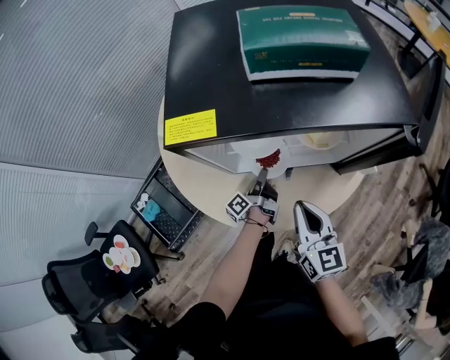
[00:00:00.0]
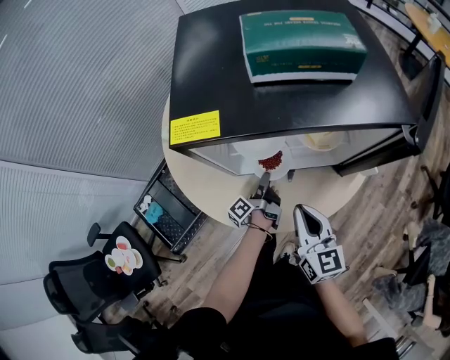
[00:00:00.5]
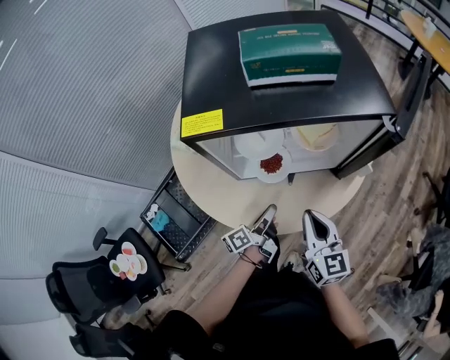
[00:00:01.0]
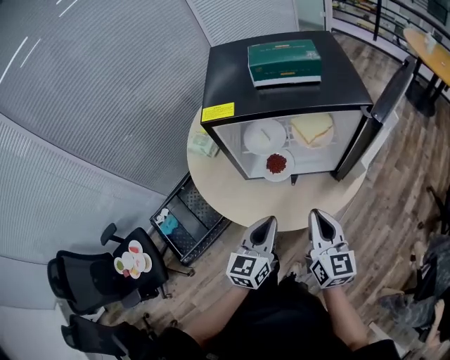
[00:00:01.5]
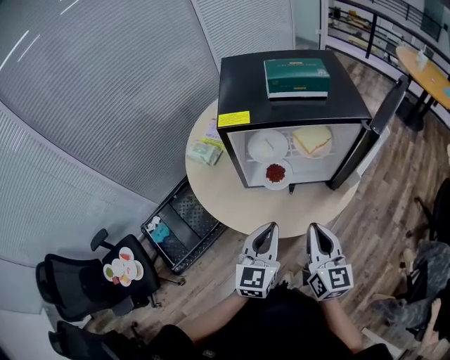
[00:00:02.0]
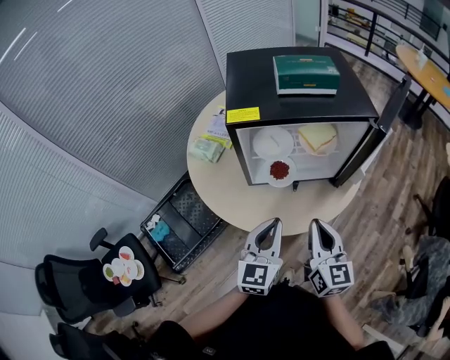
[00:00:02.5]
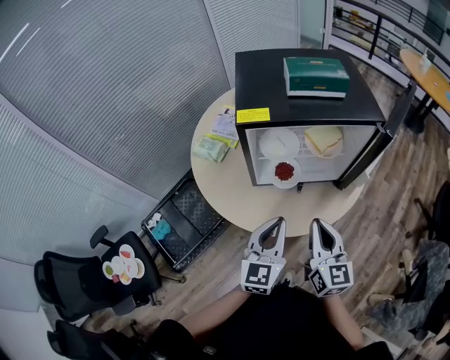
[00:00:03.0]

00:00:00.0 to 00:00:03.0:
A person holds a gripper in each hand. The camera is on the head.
00:00:00.0 to 00:00:01.5: The left gripper is displaced upward and backward by about 35 cm, and rotates around the line of its fingers by some 80 degrees, clockwise from behind. Meanwhile the right gripper is displaced backward and upward by about 10 cm.
00:00:01.5 to 00:00:03.0: The right gripper shifts some 5 cm to the left; the left gripper travels upward by roughly 5 cm.

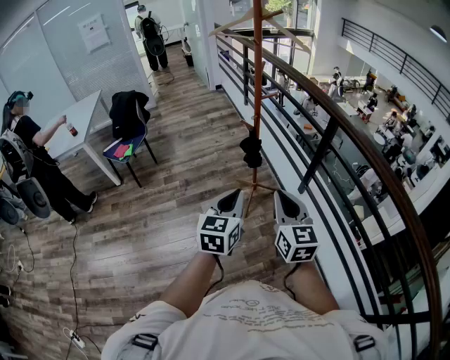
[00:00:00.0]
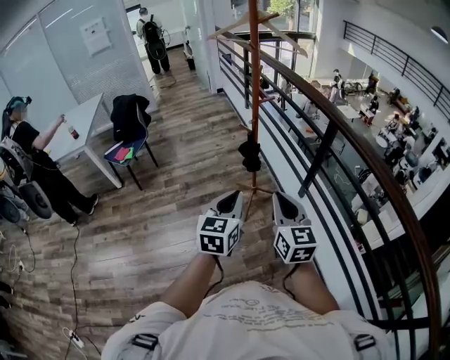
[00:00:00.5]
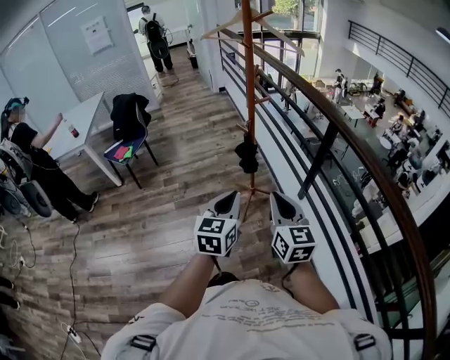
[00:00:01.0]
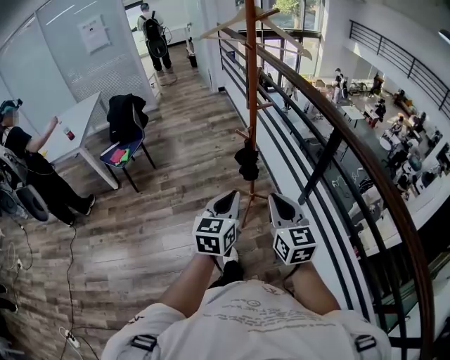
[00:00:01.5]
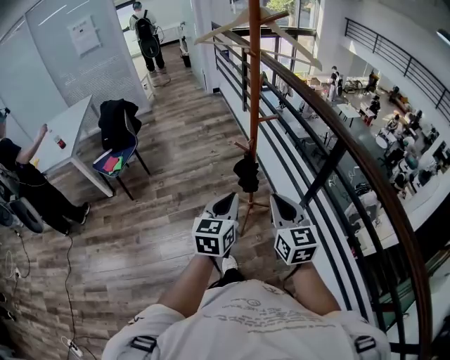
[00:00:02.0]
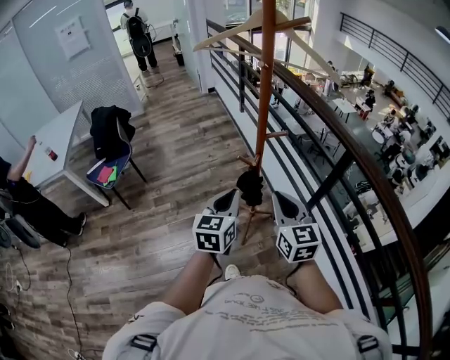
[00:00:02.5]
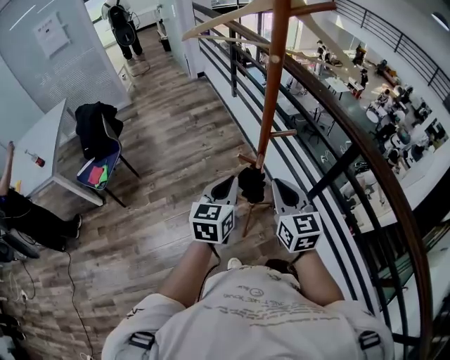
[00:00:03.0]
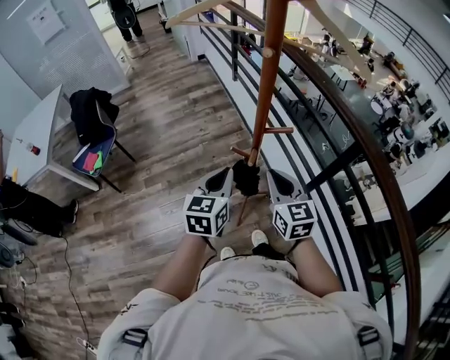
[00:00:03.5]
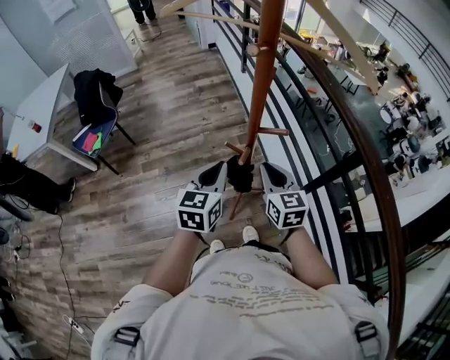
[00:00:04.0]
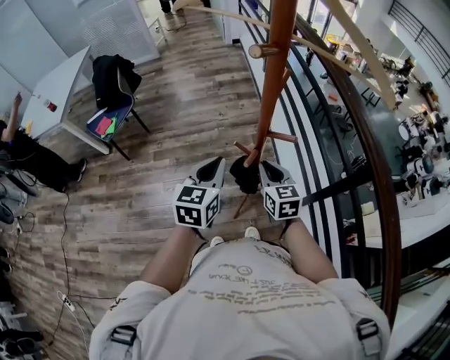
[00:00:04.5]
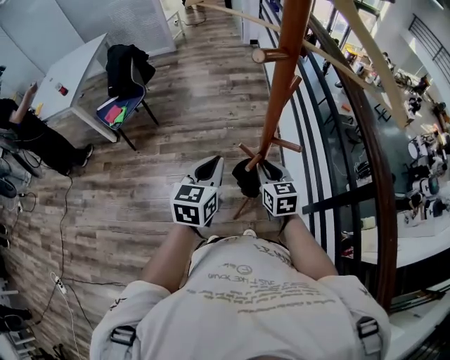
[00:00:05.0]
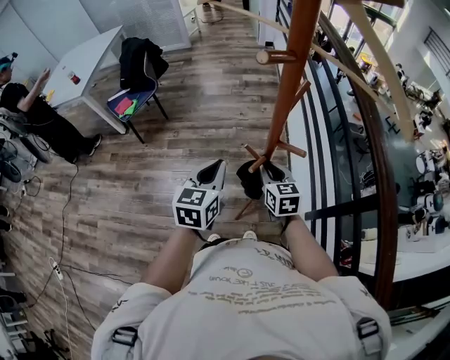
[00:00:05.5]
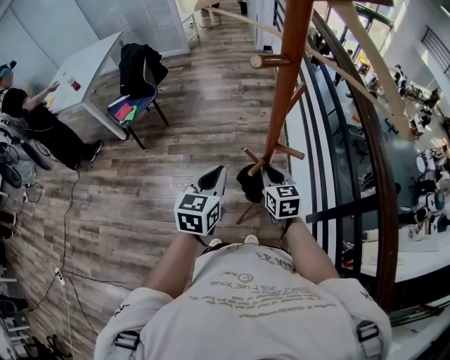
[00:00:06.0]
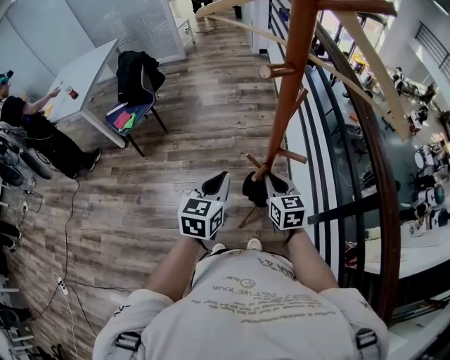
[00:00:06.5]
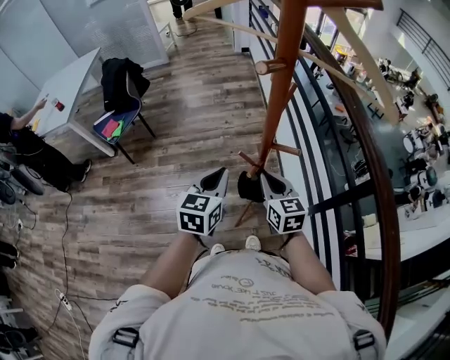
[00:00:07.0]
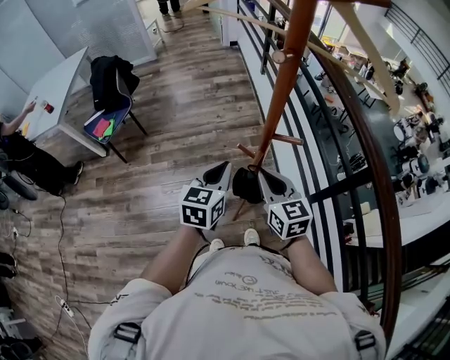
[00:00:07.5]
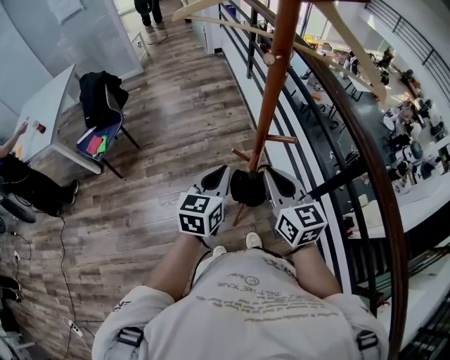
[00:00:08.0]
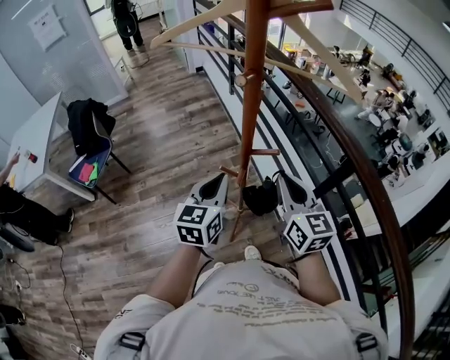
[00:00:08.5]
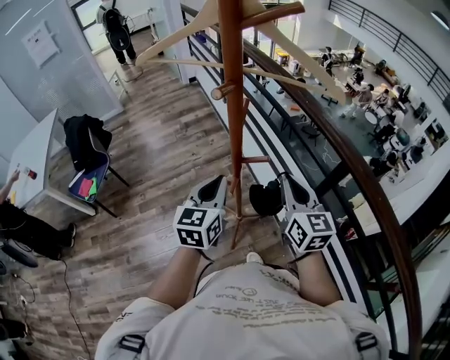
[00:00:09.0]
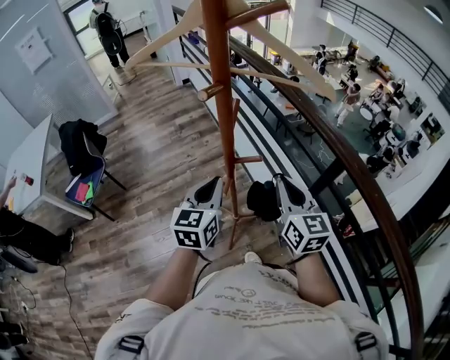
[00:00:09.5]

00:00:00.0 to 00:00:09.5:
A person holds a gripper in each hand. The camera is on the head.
00:00:00.0 to 00:00:02.0: Both grippers travel together forward, roughly 20 cm.
00:00:02.0 to 00:00:04.0: Both grippers move forward, roughly 25 cm.
00:00:04.0 to 00:00:05.5: The right gripper moves downward and forward, about 10 cm.
00:00:05.5 to 00:00:07.5: The right gripper travels upward and backward by approximately 10 cm.
00:00:07.5 to 00:00:09.5: The left gripper goes some 10 cm to the right and upward. The right gripper goes some 15 cm to the right and upward, and swivels roughly 30 degrees.

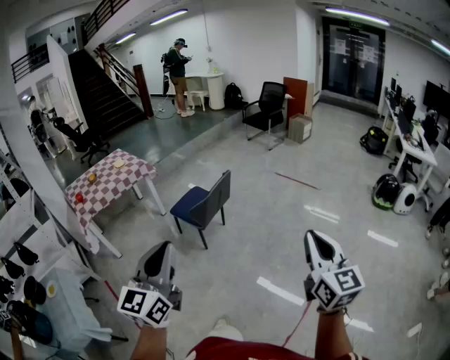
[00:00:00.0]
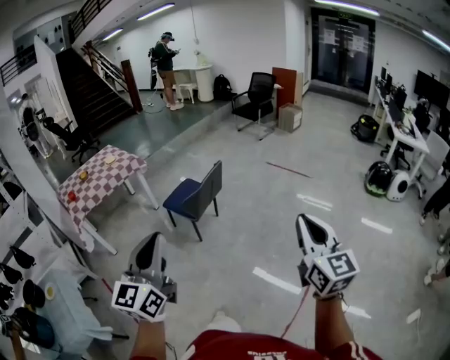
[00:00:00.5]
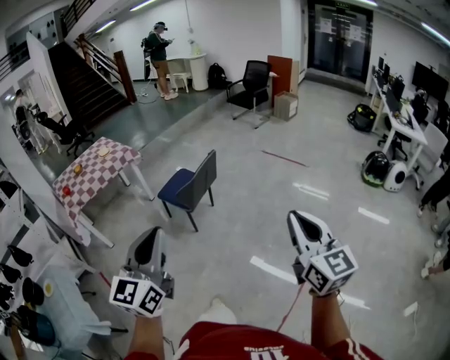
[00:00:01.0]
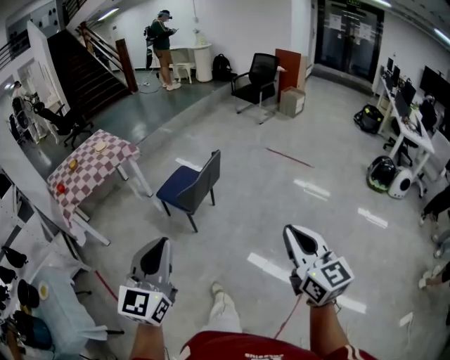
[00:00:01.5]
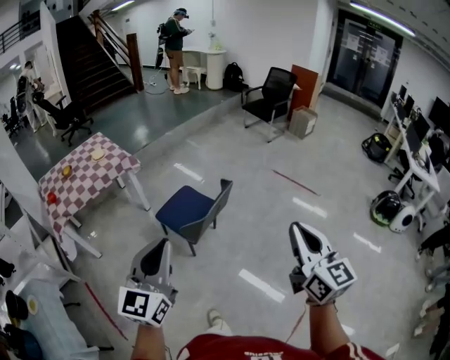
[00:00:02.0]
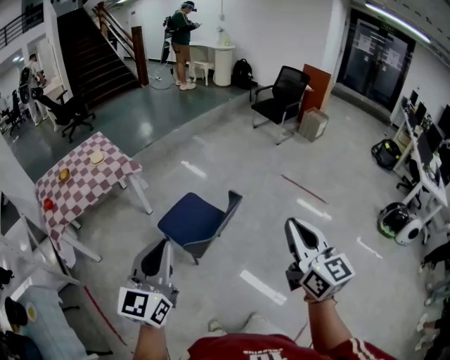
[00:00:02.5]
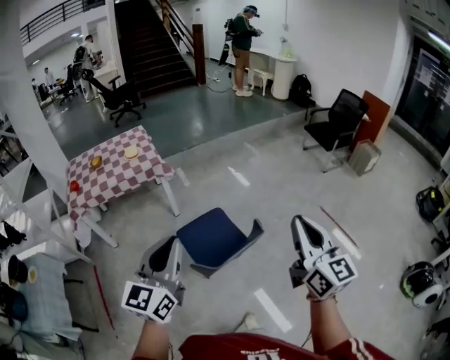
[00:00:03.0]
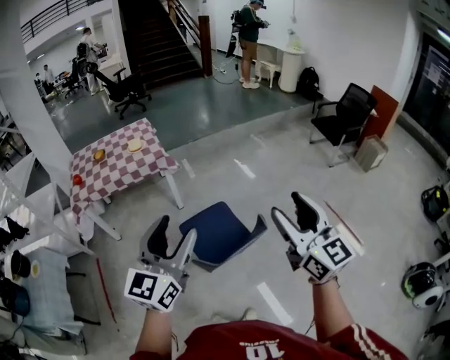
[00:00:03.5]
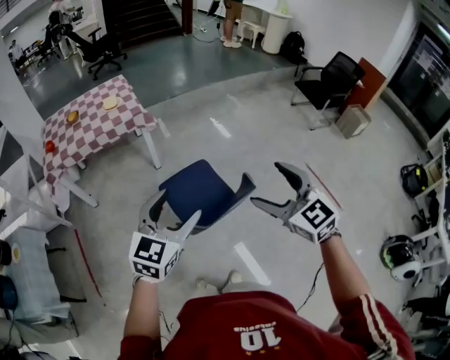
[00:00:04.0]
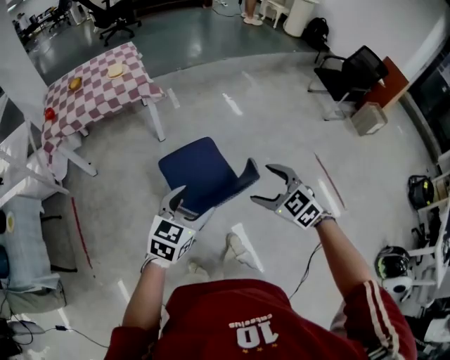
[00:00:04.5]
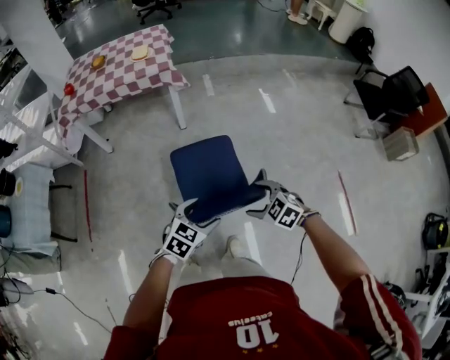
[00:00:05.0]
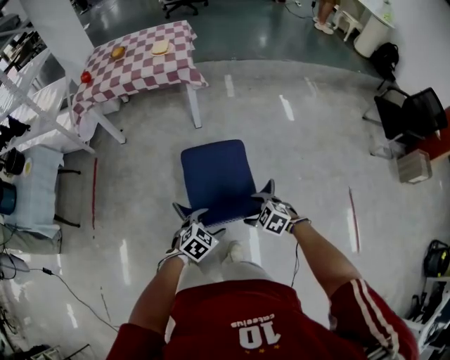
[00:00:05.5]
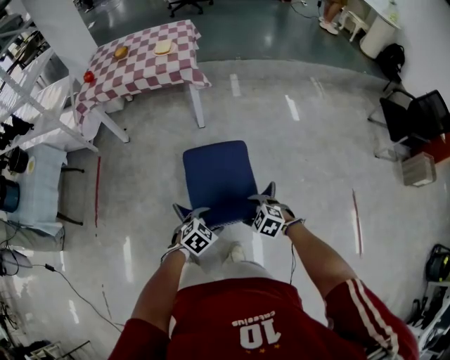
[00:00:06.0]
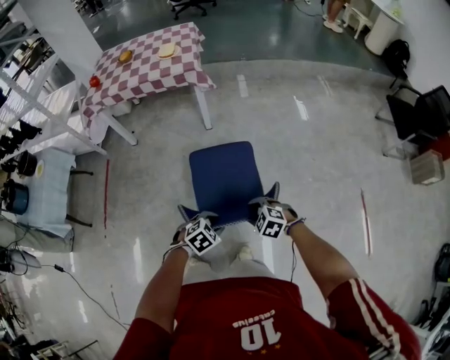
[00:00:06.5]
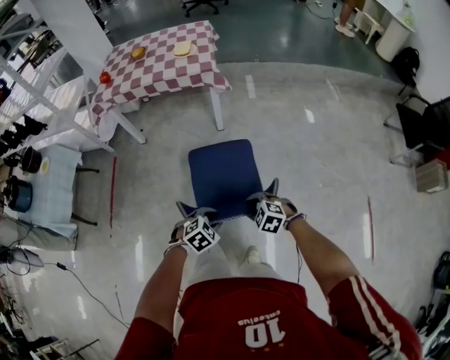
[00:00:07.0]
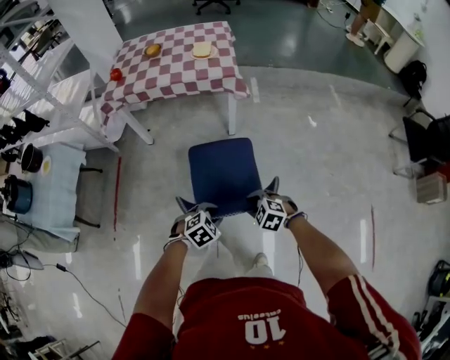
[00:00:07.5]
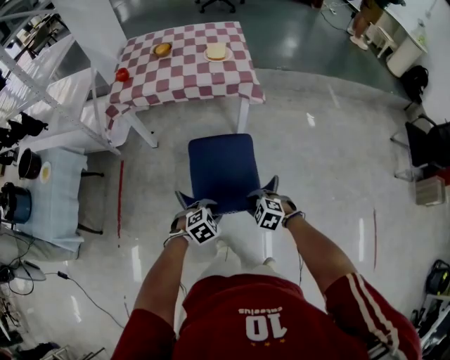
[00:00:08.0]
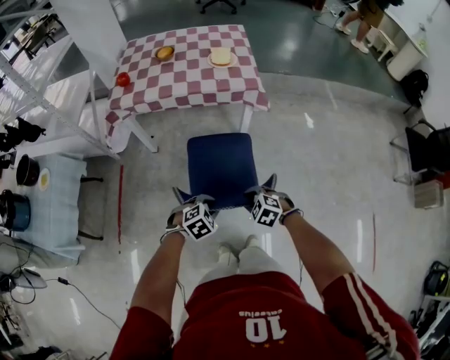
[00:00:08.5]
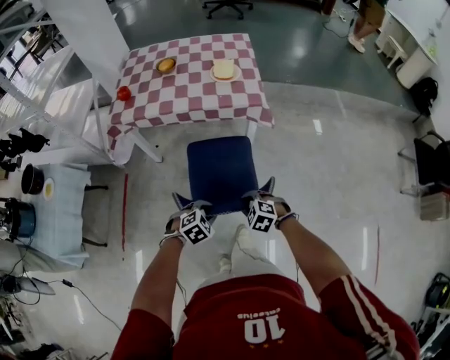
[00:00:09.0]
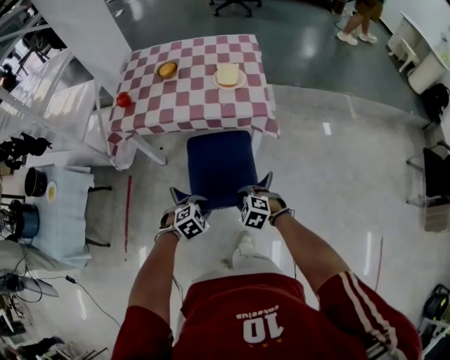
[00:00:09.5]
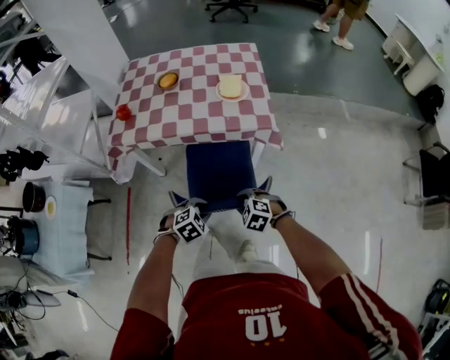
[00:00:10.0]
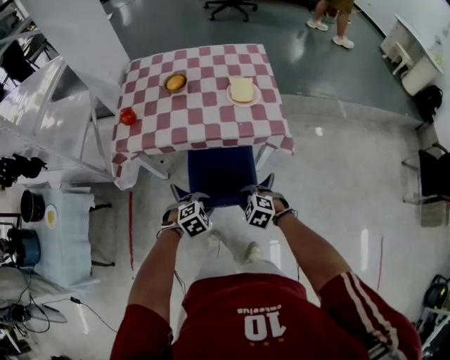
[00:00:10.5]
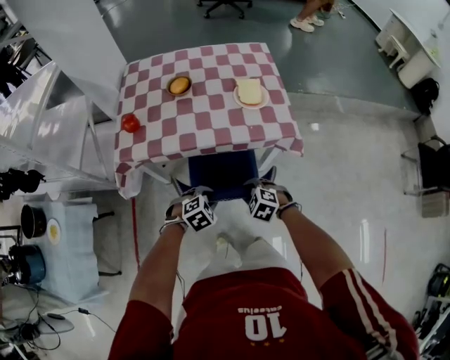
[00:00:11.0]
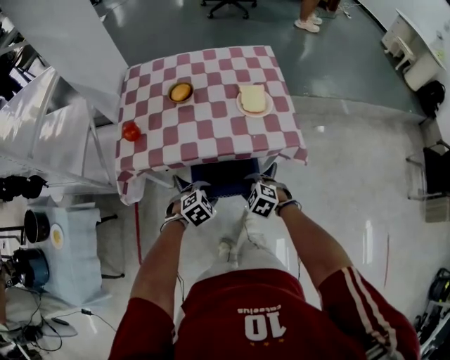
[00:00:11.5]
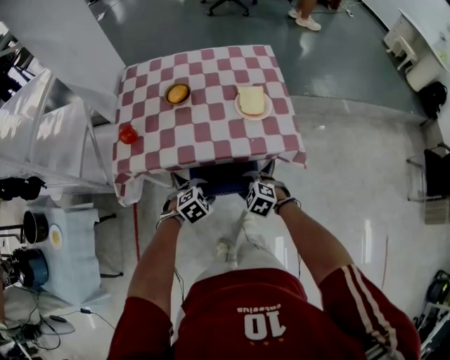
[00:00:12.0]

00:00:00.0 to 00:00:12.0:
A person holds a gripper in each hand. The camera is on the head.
00:00:00.0 to 00:00:02.0: Both grippers travel together forward, about 30 cm.
00:00:02.0 to 00:00:04.0: The left gripper moves about 30 cm, and opens its fingers. The right gripper moves some 40 cm, changes its angle by roughly 50 degrees, and opens up.
00:00:04.0 to 00:00:06.0: The grippers both shift downward by roughly 35 cm. The left gripper tilts its fingers about 40 degrees downward. The right gripper angles its fingers downward, by roughly 40 degrees.
00:00:06.0 to 00:00:08.0: The left gripper changes place by about 30 cm, and closes. Meanwhile the right gripper changes place by some 35 cm, and closes.
00:00:08.0 to 00:00:10.0: Both grippers move forward, about 25 cm.
00:00:10.0 to 00:00:12.0: The grippers both shift forward and to the left by about 20 cm.

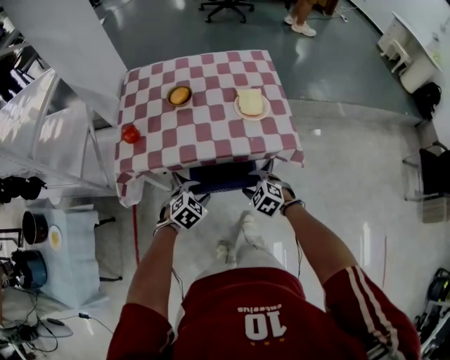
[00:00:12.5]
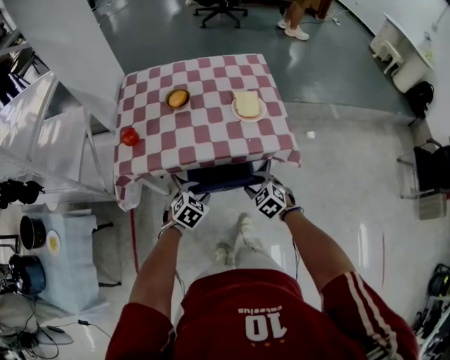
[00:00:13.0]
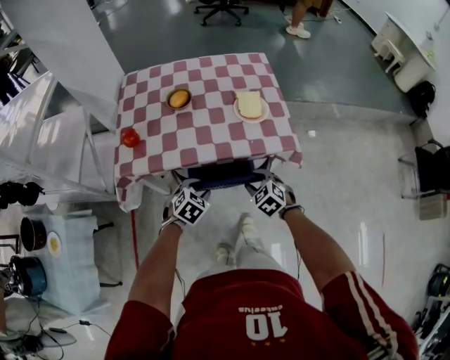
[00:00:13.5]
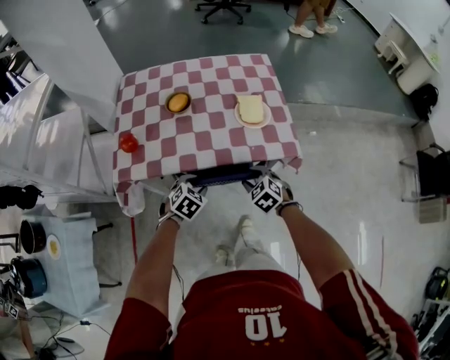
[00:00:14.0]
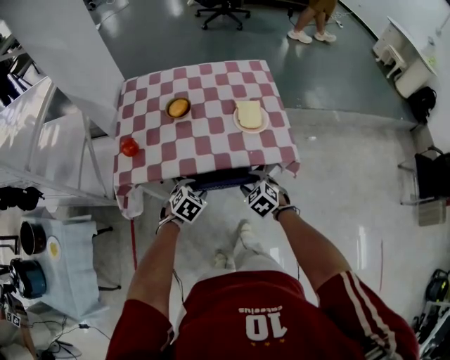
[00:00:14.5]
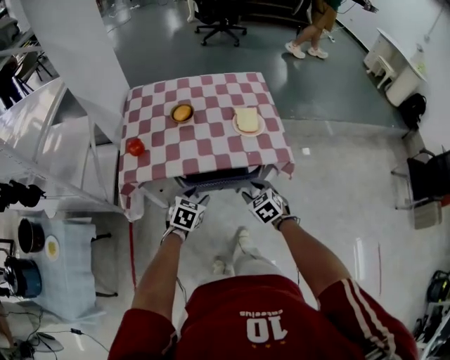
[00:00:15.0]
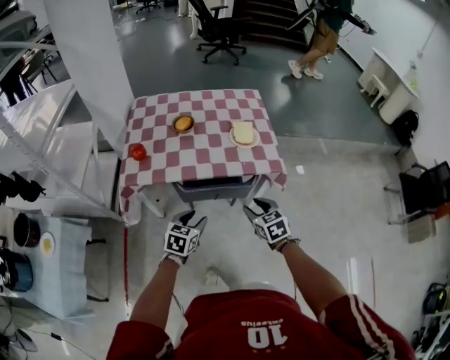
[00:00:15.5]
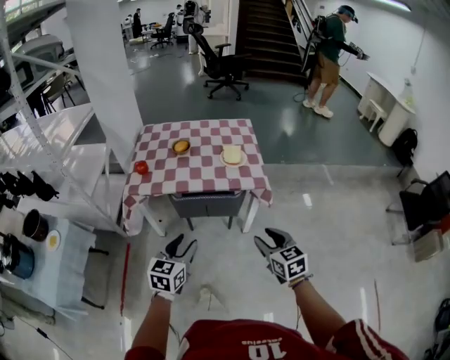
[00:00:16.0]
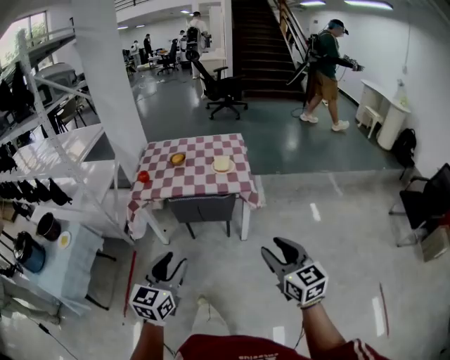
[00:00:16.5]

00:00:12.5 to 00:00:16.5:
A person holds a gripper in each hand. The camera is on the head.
00:00:12.5 to 00:00:14.5: The grippers both shift forward by roughly 5 cm.
00:00:14.5 to 00:00:16.5: The pair of grippers is taken backward and to the right, roughly 40 cm. Both grippers move upward, some 30 cm. The left gripper points its fingers some 50 degrees further upward; the right gripper angles its fingers upward, by roughly 40 degrees.
